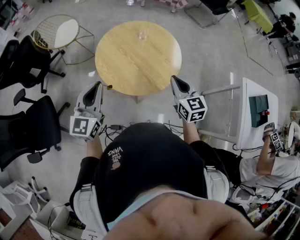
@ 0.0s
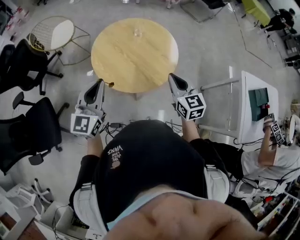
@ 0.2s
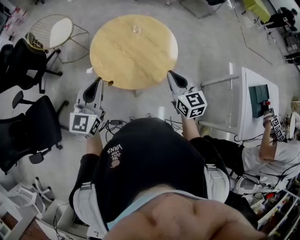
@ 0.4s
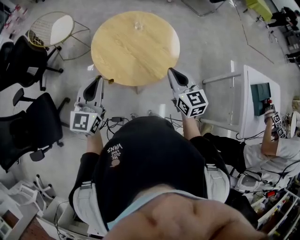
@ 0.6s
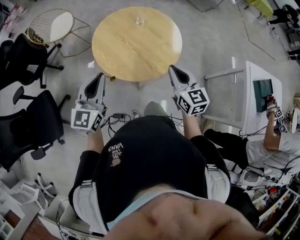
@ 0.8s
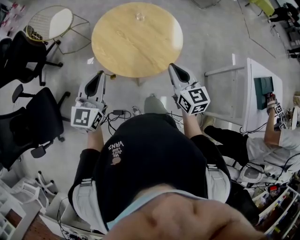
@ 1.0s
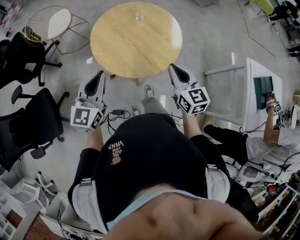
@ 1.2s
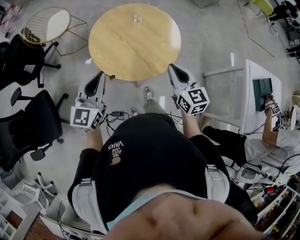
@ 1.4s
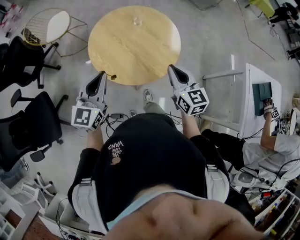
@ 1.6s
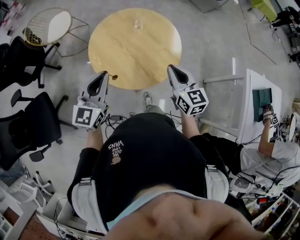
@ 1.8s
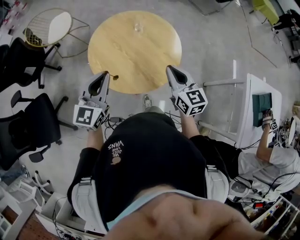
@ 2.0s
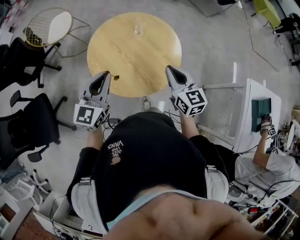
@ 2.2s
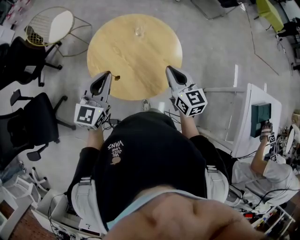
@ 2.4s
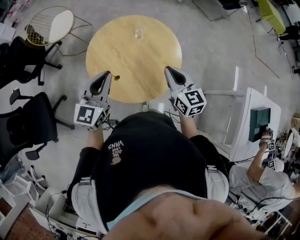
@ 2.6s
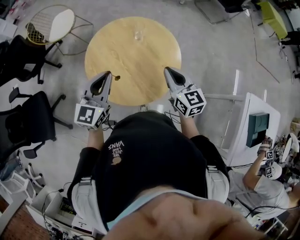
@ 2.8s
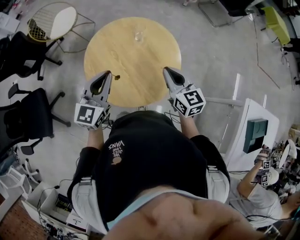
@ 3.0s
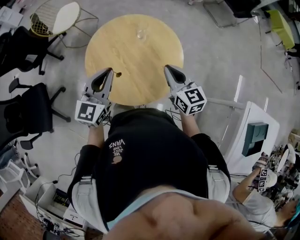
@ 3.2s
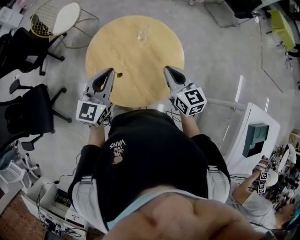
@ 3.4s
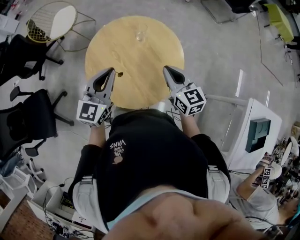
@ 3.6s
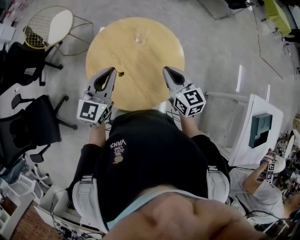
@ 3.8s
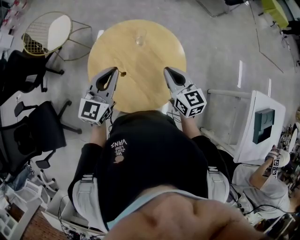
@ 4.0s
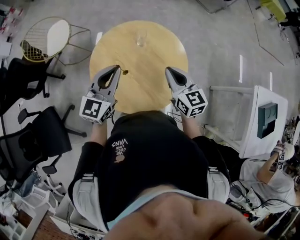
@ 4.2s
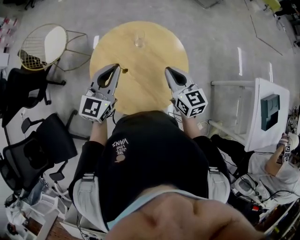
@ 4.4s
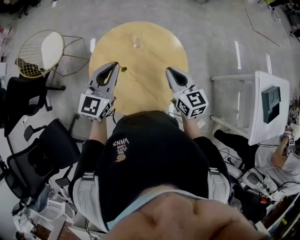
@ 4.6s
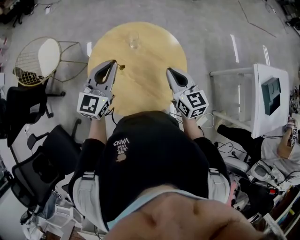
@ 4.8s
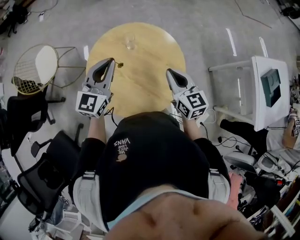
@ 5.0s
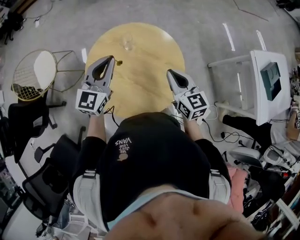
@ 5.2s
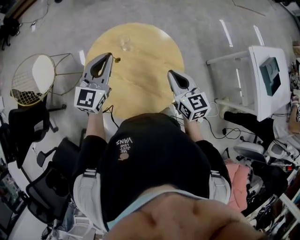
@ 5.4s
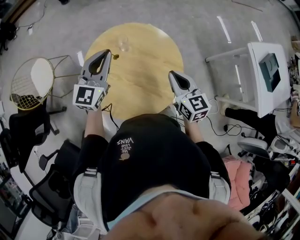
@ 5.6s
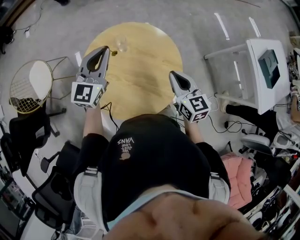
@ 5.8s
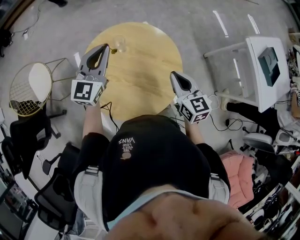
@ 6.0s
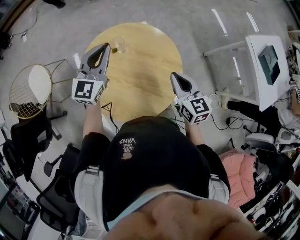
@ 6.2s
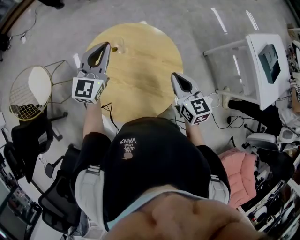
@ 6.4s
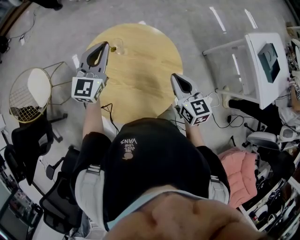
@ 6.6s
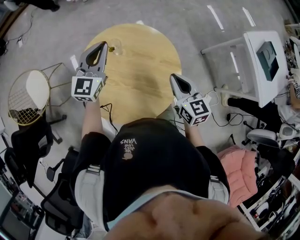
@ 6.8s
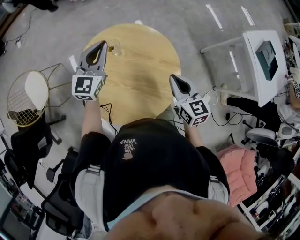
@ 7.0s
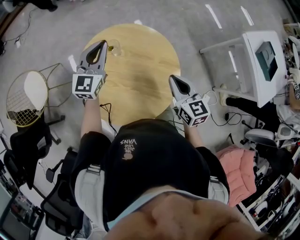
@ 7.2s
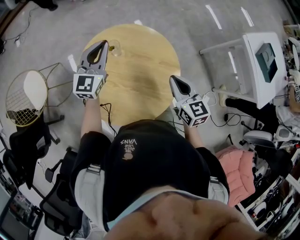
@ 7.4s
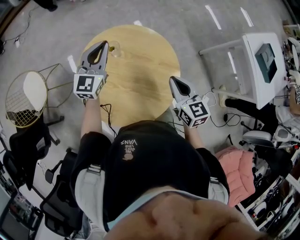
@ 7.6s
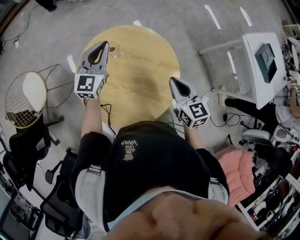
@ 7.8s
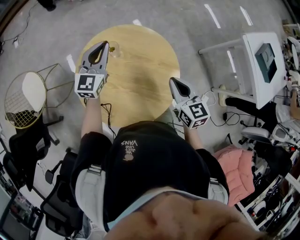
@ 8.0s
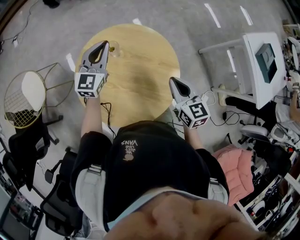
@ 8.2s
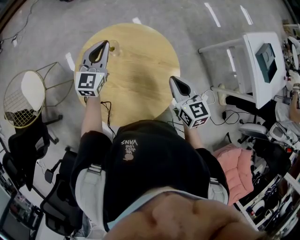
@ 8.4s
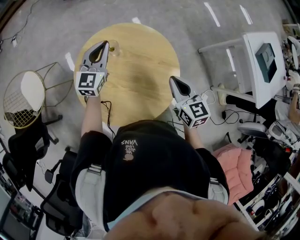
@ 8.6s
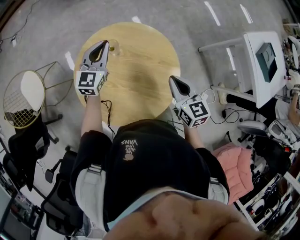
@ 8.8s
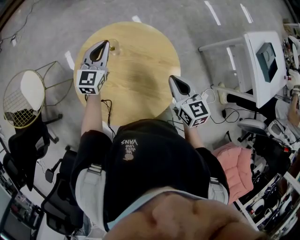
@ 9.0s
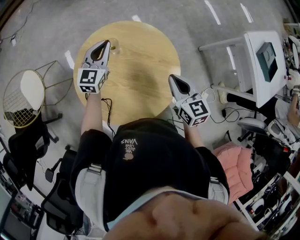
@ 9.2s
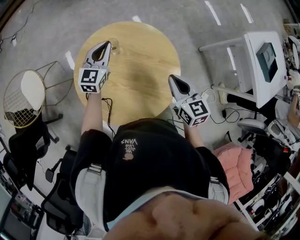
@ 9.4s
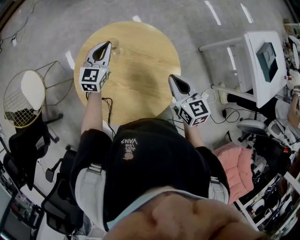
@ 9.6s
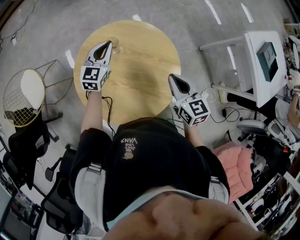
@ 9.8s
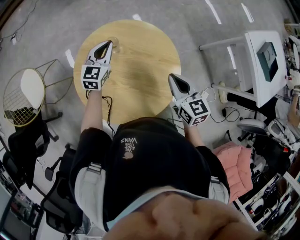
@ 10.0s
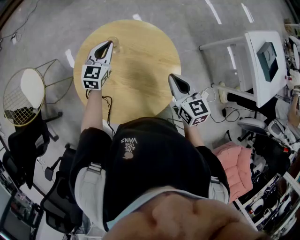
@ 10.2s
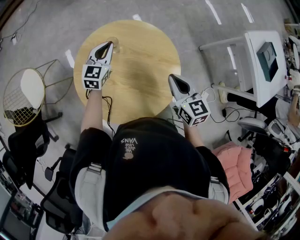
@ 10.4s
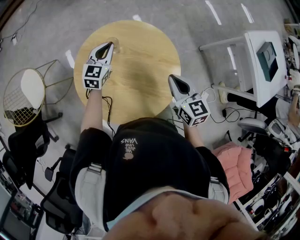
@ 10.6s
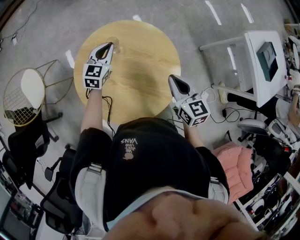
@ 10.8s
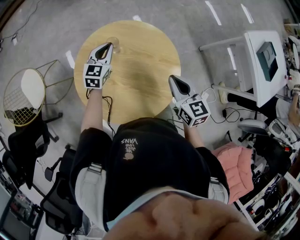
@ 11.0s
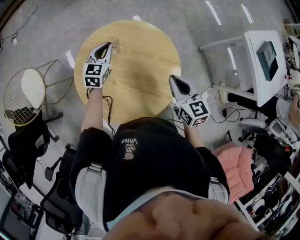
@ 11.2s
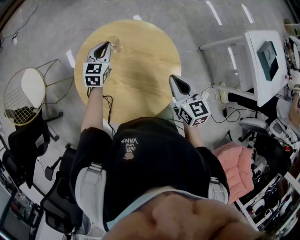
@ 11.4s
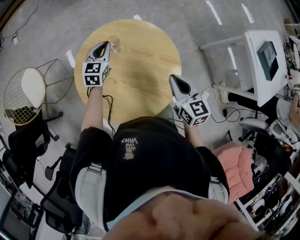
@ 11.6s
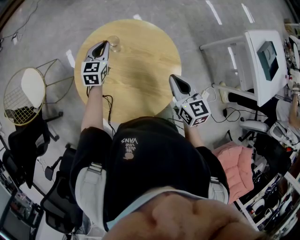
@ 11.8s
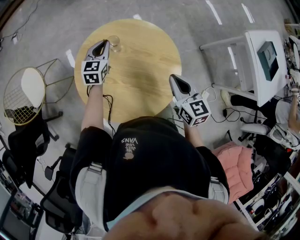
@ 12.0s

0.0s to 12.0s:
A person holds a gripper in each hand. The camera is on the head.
0.0s to 1.6s: The left gripper changes place by approximately 5 cm.
1.6s to 3.0s: The left gripper travels forward and to the right by some 15 cm. The right gripper is displaced forward by about 15 cm.
3.0s to 4.4s: The right gripper shifts some 10 cm to the left and forward; the left gripper travels forward by approximately 10 cm.
4.4s to 6.0s: The right gripper shifts by approximately 5 cm, and swivels roughly 20 degrees, while the left gripper moves forward, about 15 cm.
6.0s to 7.6s: The left gripper shifts about 10 cm forward and downward.
7.6s to 9.0s: The left gripper heads downward, covering about 5 cm.
9.0s to 10.4s: The left gripper travels downward by approximately 5 cm.
10.4s to 12.0s: There are only small adjustments of the grippers.

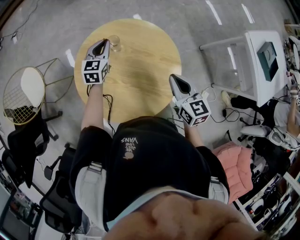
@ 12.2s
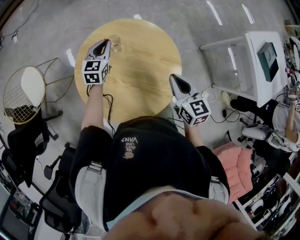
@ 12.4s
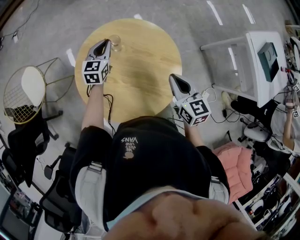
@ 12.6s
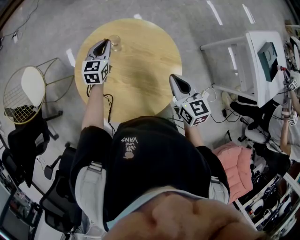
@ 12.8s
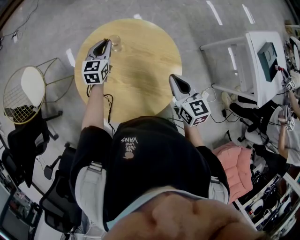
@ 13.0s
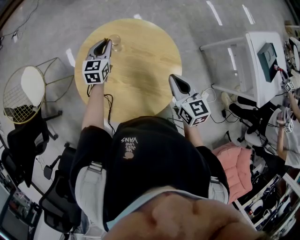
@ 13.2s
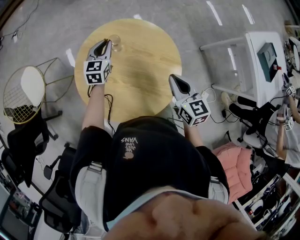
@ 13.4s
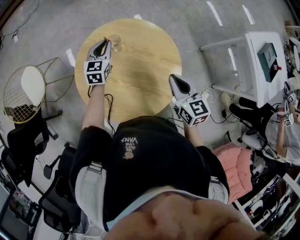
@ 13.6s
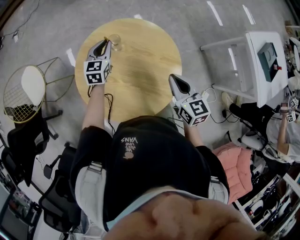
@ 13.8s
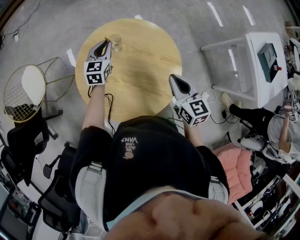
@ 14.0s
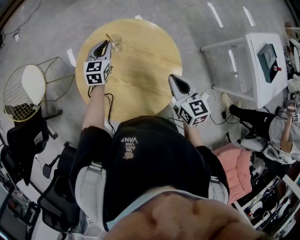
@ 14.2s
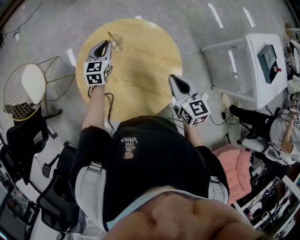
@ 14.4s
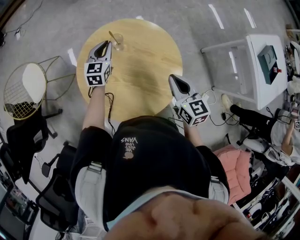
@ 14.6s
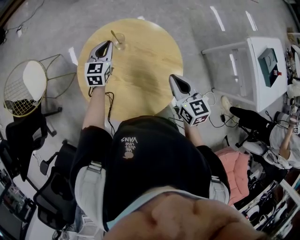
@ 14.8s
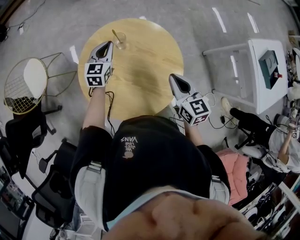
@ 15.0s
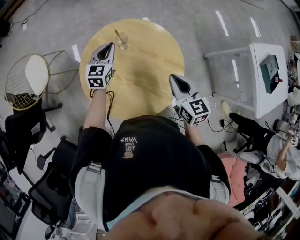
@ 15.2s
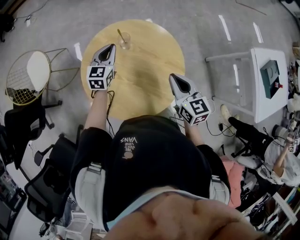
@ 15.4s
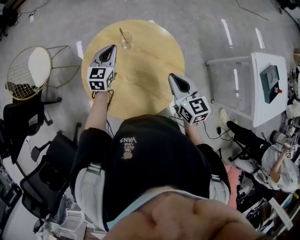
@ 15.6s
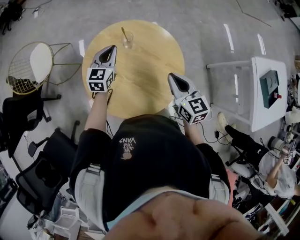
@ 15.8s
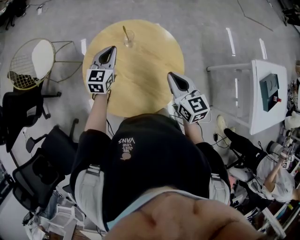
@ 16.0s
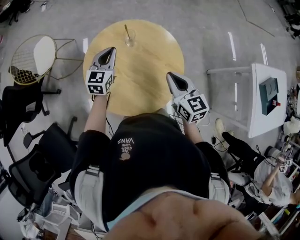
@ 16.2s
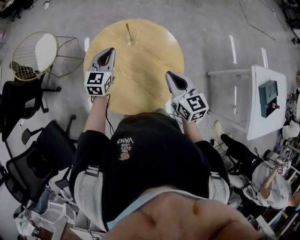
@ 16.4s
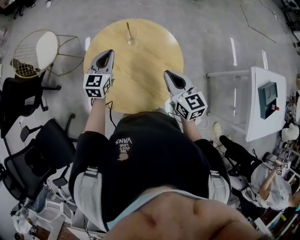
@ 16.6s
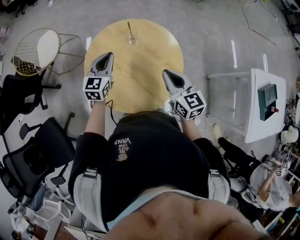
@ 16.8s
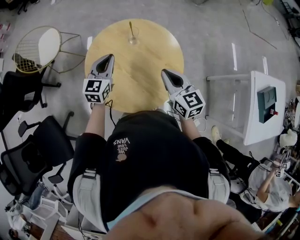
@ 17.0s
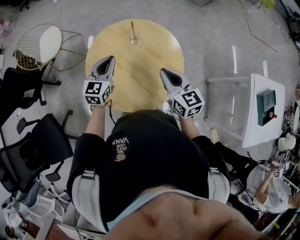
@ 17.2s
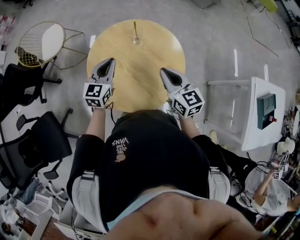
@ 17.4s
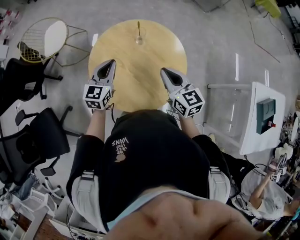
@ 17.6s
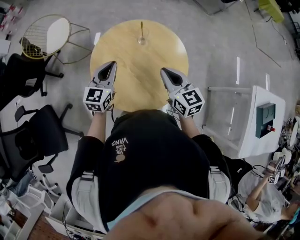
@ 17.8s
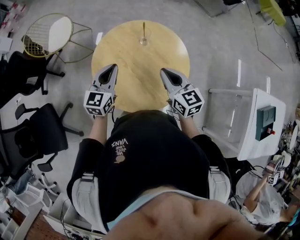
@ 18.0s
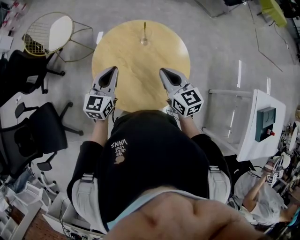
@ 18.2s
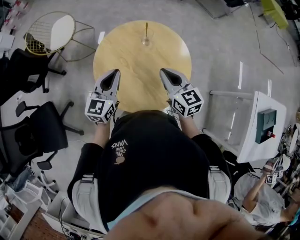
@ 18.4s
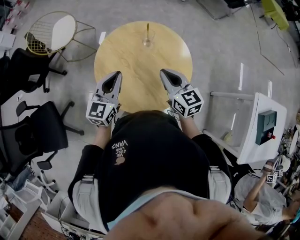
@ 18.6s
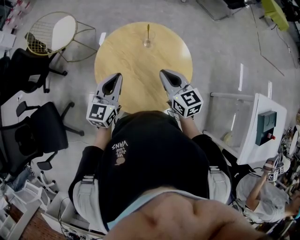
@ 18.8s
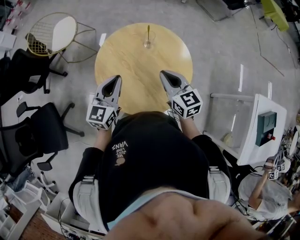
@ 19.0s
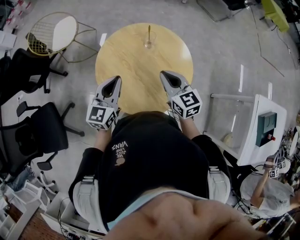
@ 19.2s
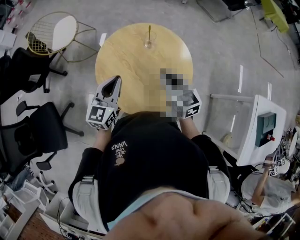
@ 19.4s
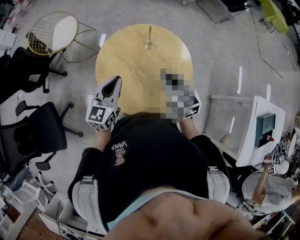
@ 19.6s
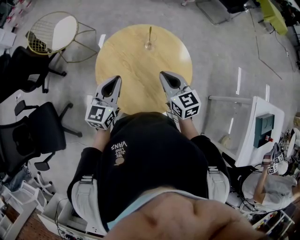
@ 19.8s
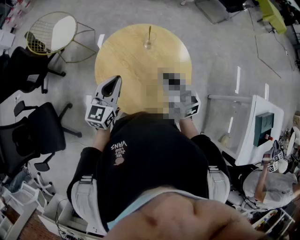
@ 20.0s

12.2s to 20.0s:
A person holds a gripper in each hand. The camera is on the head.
12.2s to 13.8s: Neither gripper changes place.
13.8s to 15.4s: The left gripper shifts by some 5 cm.
15.4s to 16.8s: The left gripper shifts roughly 15 cm backward and upward.
16.8s to 18.4s: The left gripper heads backward, covering approximately 10 cm.
18.4s to 20.0s: The grippers stay close to where they were, moving slightly.

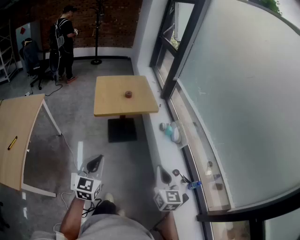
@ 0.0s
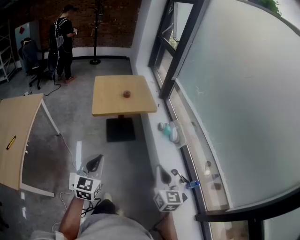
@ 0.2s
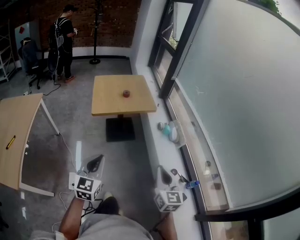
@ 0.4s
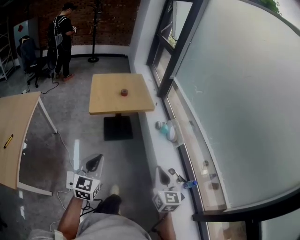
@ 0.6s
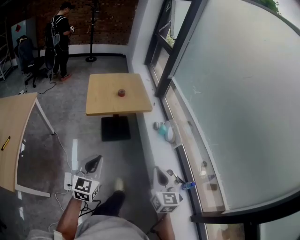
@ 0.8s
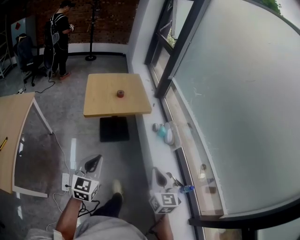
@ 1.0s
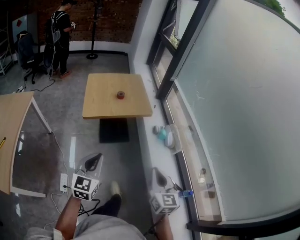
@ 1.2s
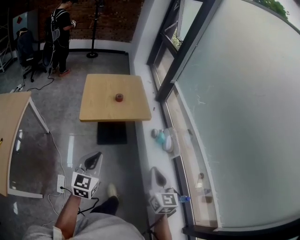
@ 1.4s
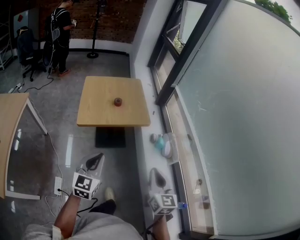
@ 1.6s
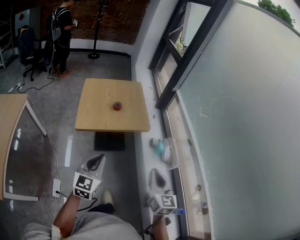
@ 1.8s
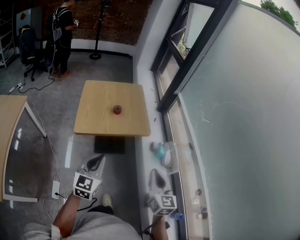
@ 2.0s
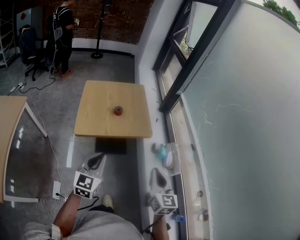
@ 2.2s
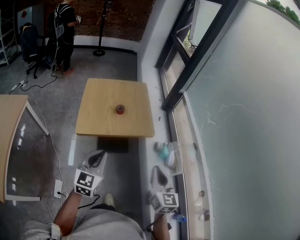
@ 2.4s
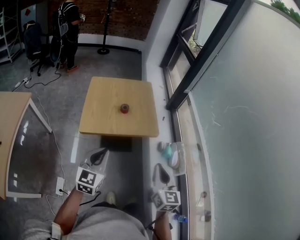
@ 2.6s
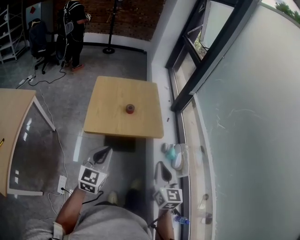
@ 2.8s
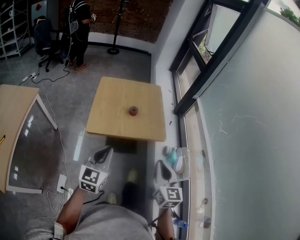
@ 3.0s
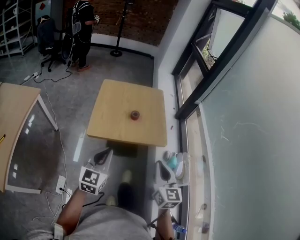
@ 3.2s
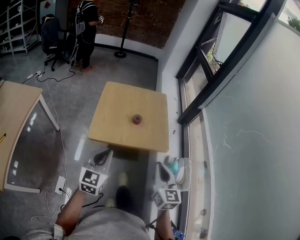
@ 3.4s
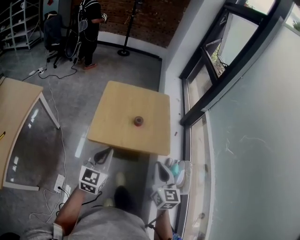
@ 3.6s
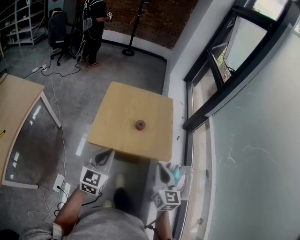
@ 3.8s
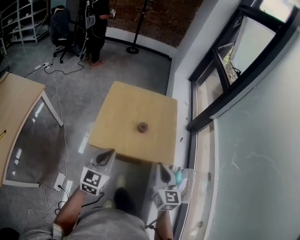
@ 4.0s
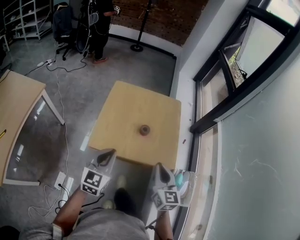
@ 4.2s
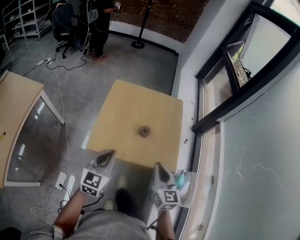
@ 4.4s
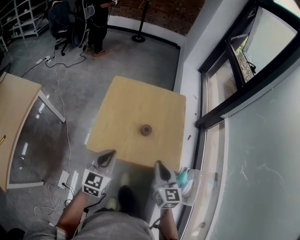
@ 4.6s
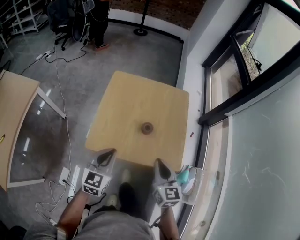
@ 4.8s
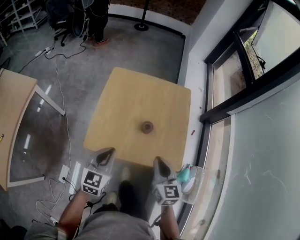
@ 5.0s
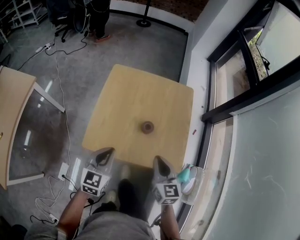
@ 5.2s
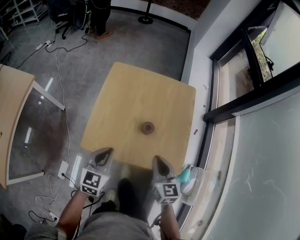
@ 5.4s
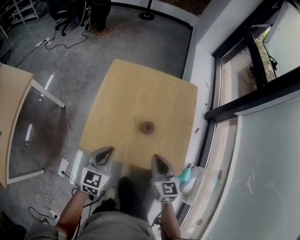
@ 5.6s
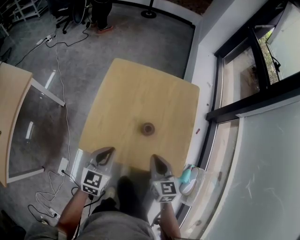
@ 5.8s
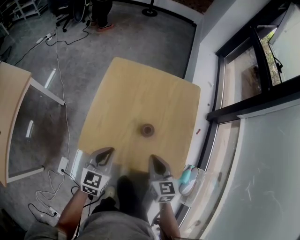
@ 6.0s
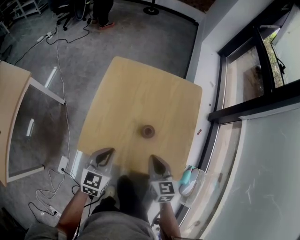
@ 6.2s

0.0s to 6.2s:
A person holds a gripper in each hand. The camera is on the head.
0.0s to 1.6s: The two grippers go some 20 cm forward.
1.6s to 3.2s: Both grippers move forward, about 20 cm.
3.2s to 4.6s: The right gripper moves forward, about 25 cm; the left gripper shifts approximately 20 cm forward and downward.
4.6s to 6.2s: Both grippers move downward and forward, about 15 cm.
